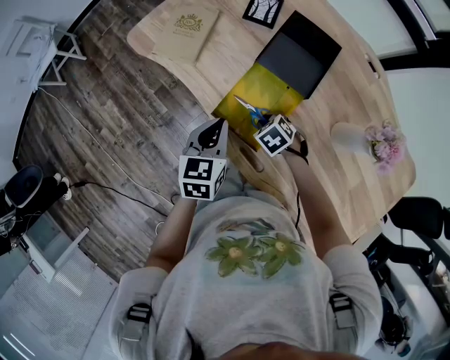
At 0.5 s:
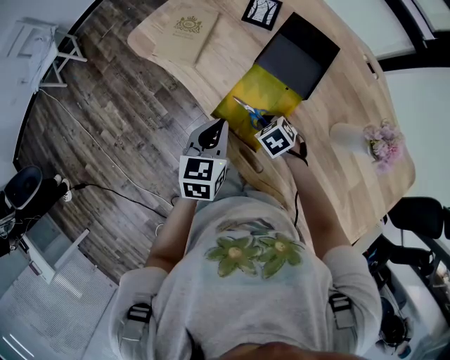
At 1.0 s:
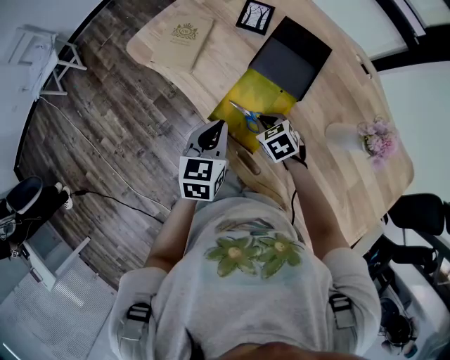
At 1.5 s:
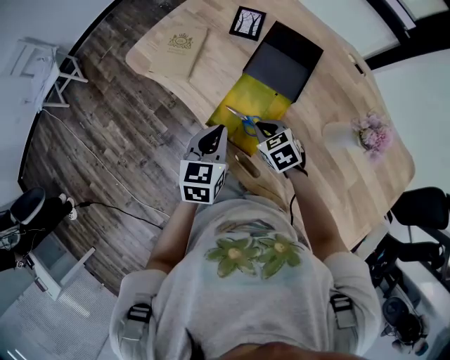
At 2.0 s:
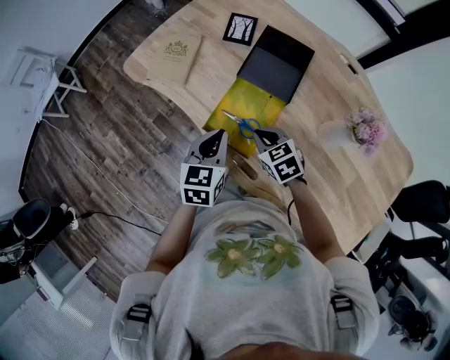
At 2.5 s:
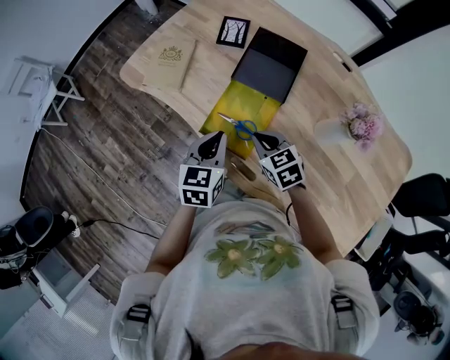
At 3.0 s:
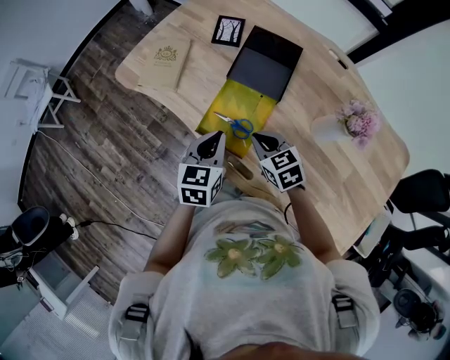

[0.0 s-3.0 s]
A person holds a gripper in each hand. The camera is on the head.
0.0 to 1.5 s: The right gripper goes approximately 10 cm upward, and turns by about 20 degrees.
1.5 to 3.0 s: The right gripper goes some 5 cm upward.

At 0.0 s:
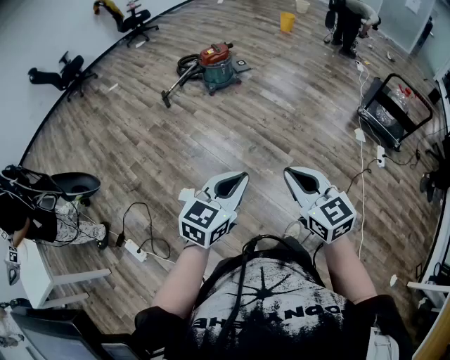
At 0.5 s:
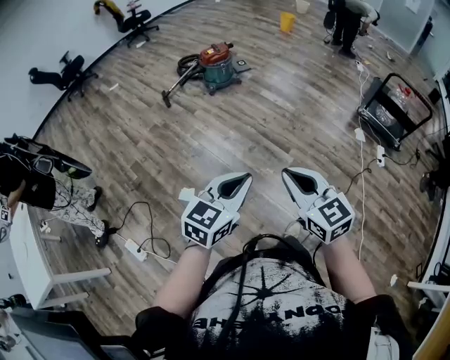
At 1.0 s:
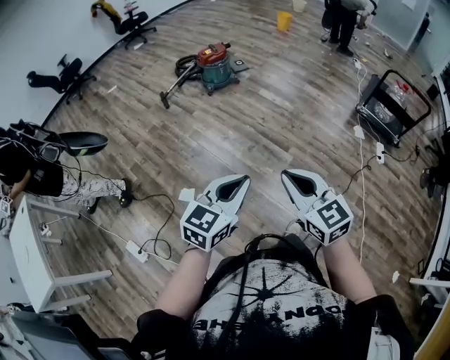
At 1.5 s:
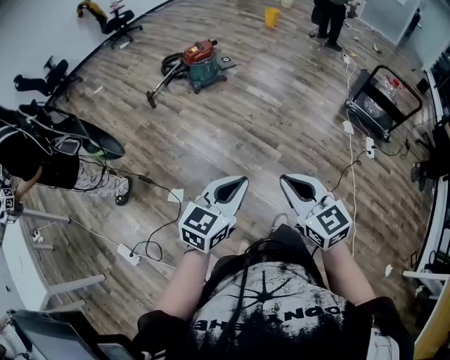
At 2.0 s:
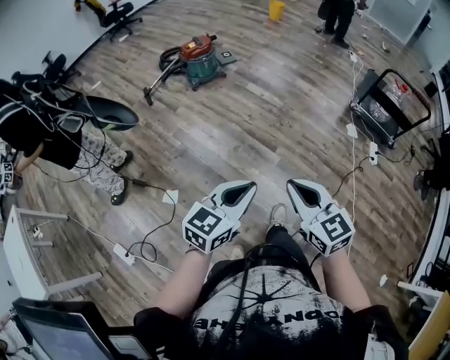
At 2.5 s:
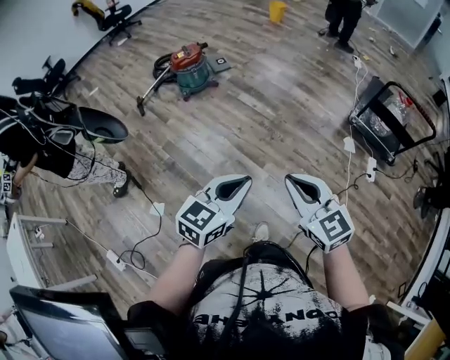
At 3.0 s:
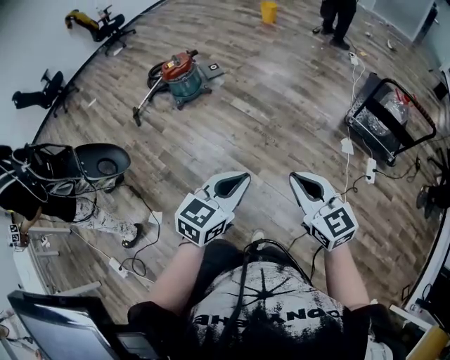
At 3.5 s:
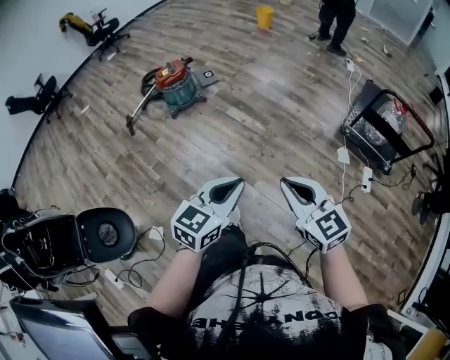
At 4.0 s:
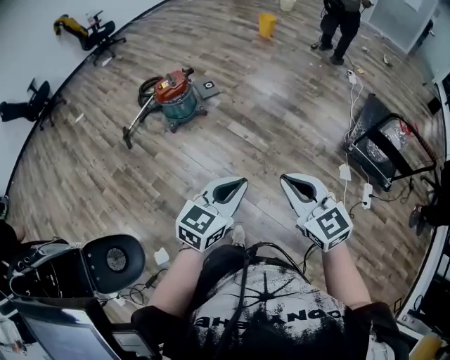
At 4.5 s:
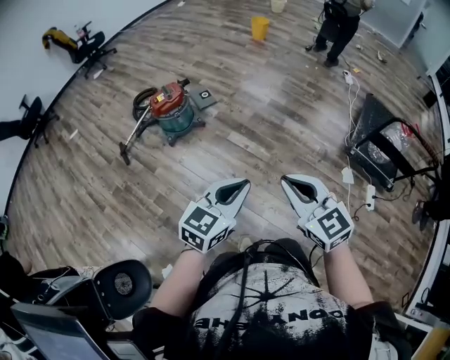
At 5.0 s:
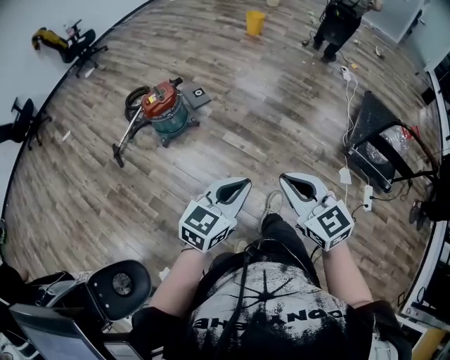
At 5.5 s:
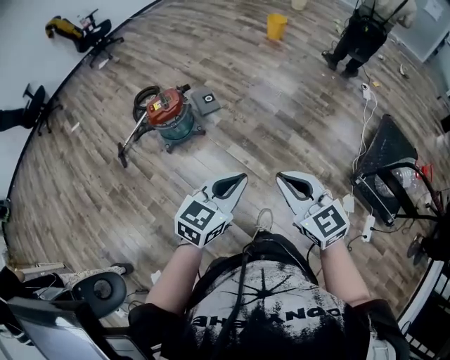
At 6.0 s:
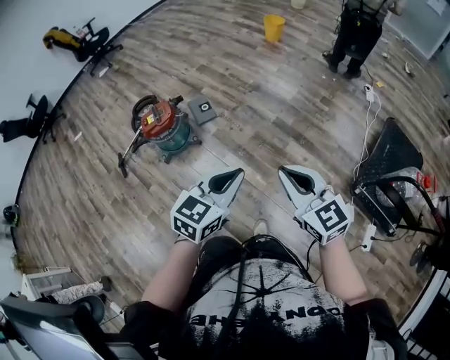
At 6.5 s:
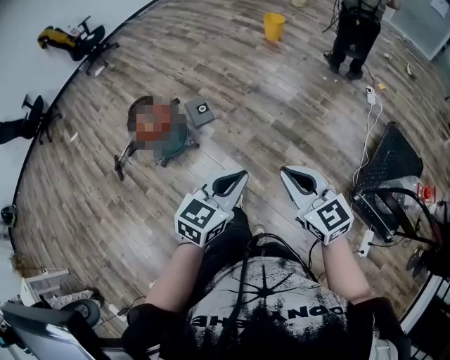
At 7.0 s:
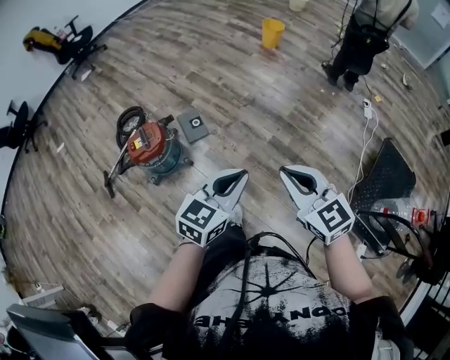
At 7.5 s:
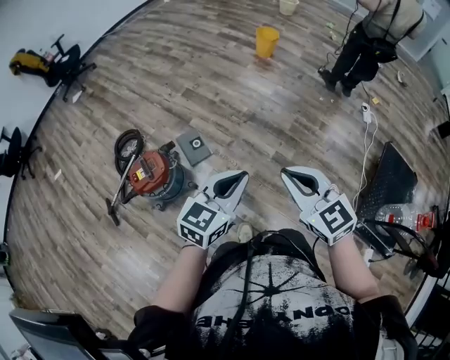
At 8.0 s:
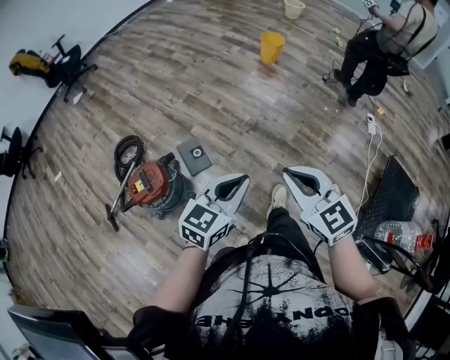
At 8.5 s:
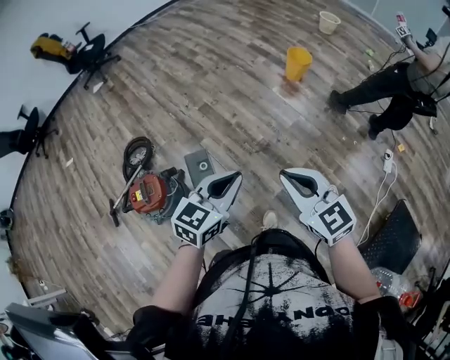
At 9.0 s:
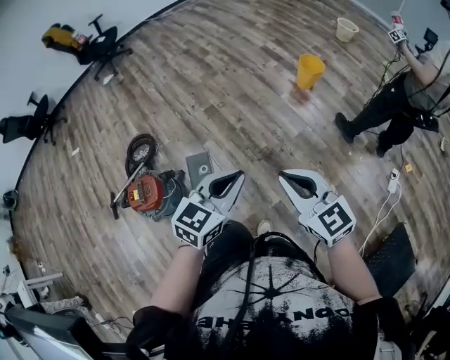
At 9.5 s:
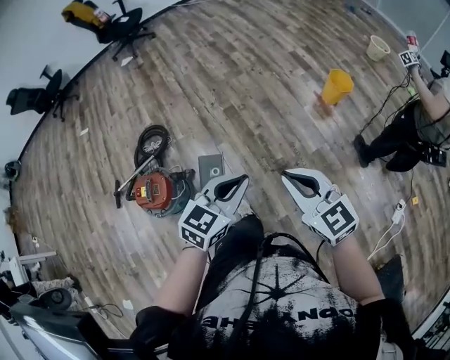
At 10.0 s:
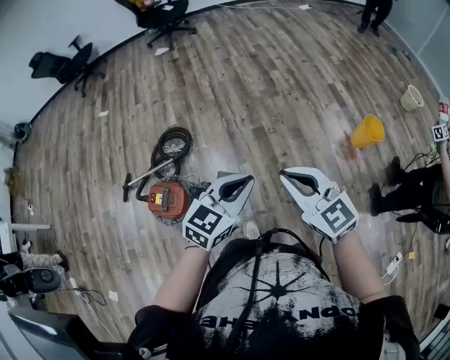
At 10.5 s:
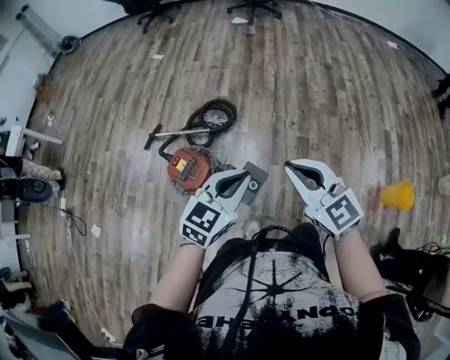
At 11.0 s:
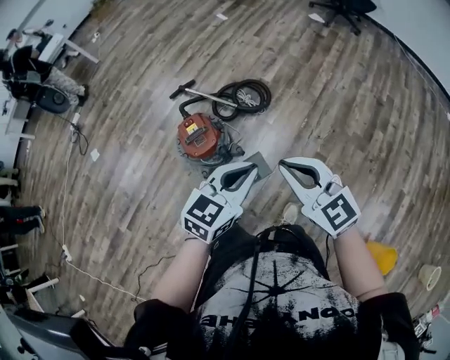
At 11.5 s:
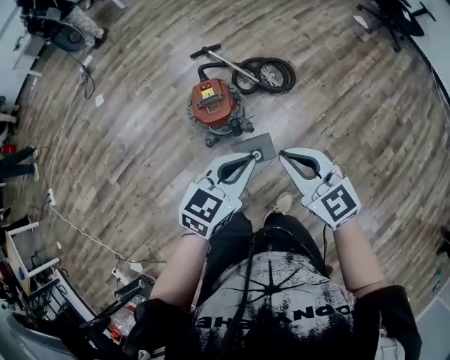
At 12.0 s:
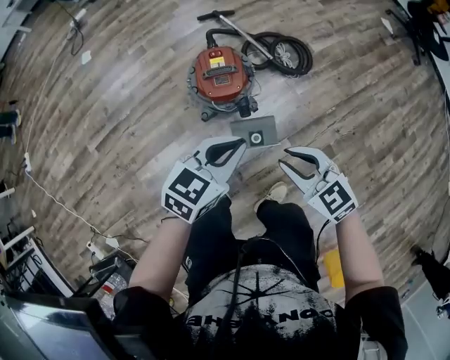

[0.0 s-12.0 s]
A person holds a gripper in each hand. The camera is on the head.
0.0 to 2.0 s: Both grippers move to the right and forward, about 10 cm.
2.0 to 4.0 s: The pair of grippers is taken forward, some 40 cm.
4.0 to 6.0 s: Both grippers are carried forward, roughly 40 cm.
6.0 to 8.0 s: The pair of grippers is taken forward, about 40 cm.
8.0 to 10.0 s: The two grippers travel together, approximately 40 cm. The right gripper swivels roughly 40 degrees; the left gripper swivels about 30 degrees.
10.0 to 12.0 s: The right gripper moves downward, some 20 cm, and rotates about 80 degrees. Meanwhile the left gripper shifts by some 25 cm, and changes its angle by about 70 degrees.

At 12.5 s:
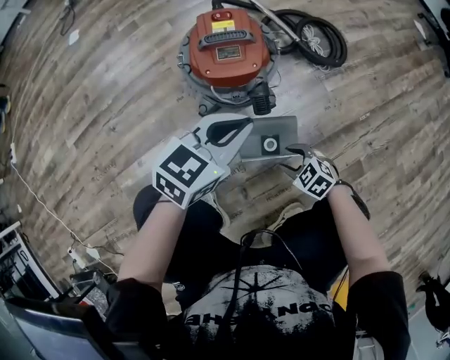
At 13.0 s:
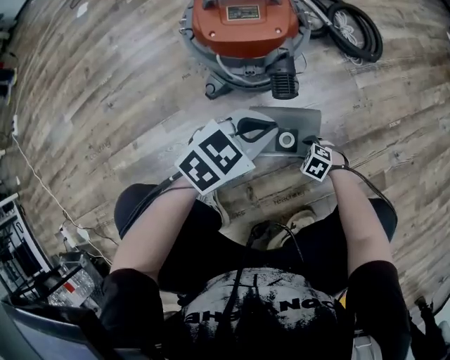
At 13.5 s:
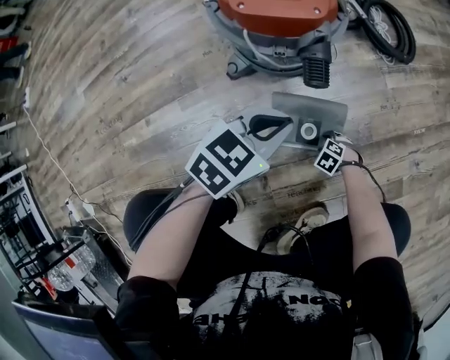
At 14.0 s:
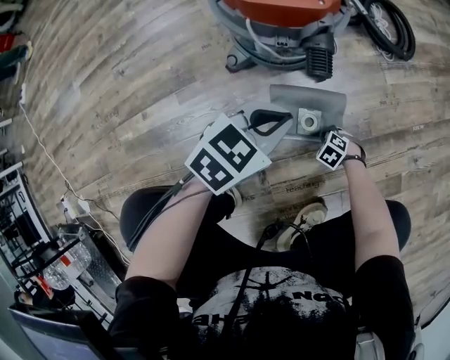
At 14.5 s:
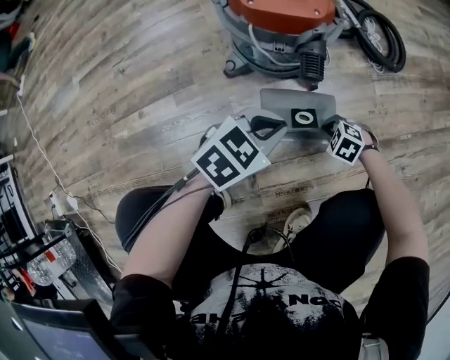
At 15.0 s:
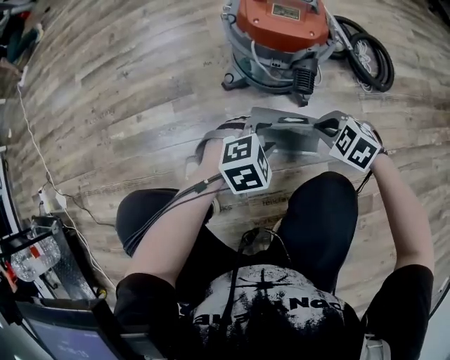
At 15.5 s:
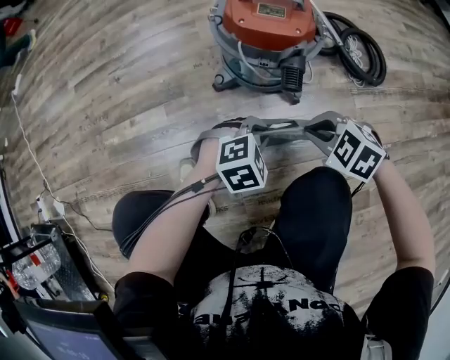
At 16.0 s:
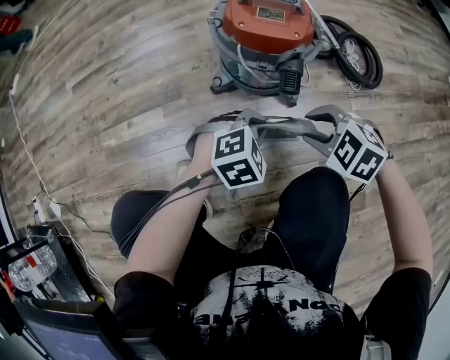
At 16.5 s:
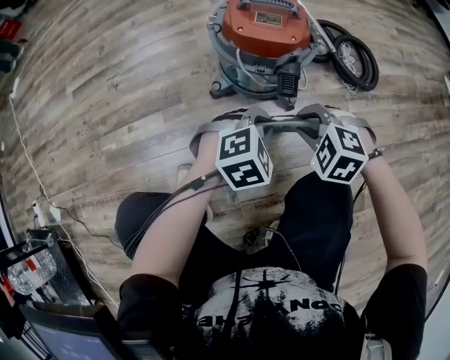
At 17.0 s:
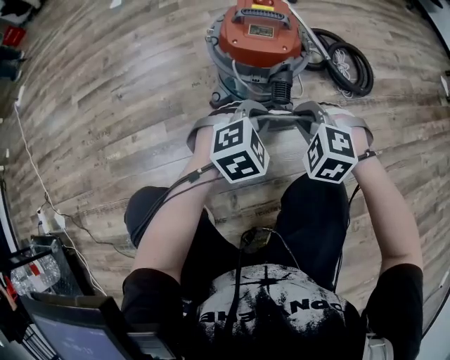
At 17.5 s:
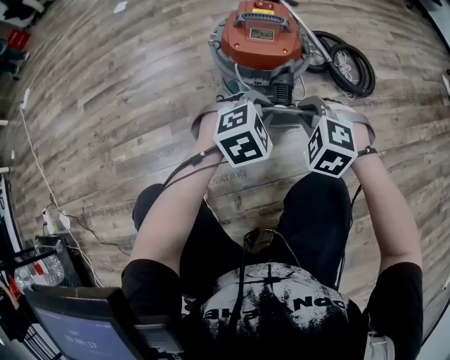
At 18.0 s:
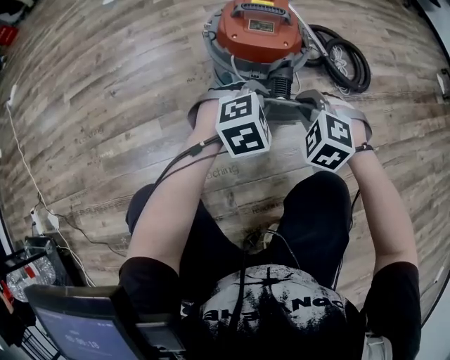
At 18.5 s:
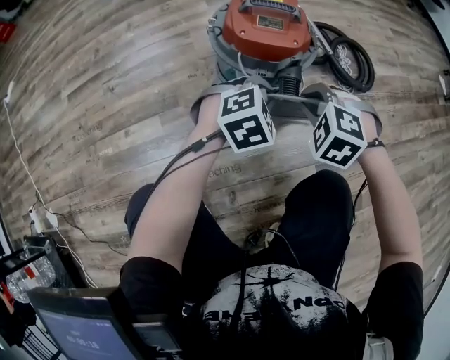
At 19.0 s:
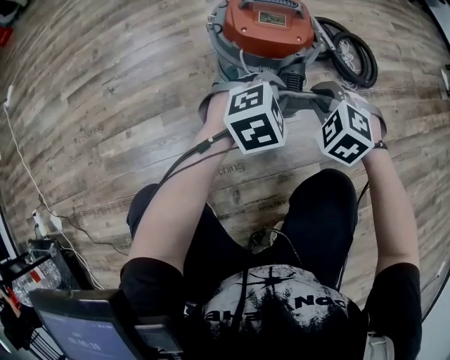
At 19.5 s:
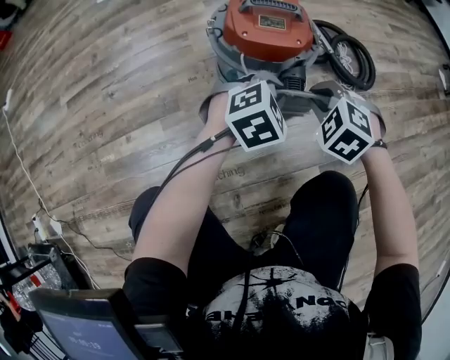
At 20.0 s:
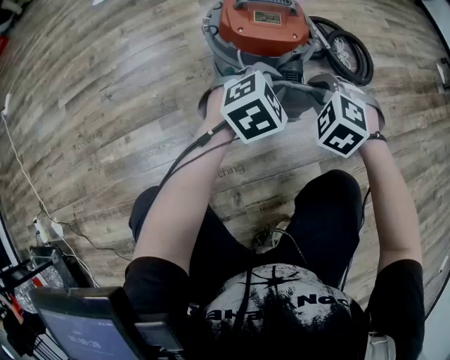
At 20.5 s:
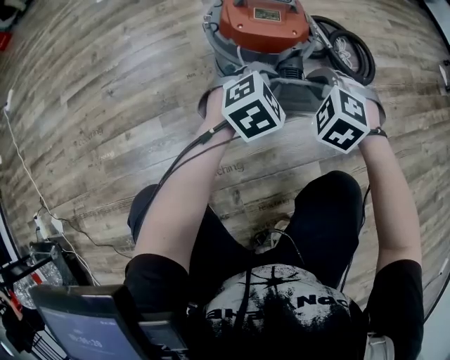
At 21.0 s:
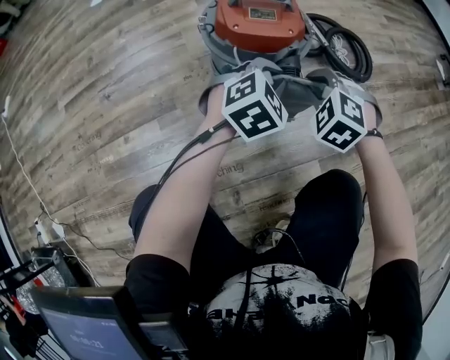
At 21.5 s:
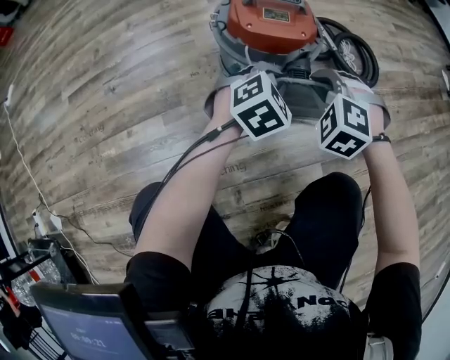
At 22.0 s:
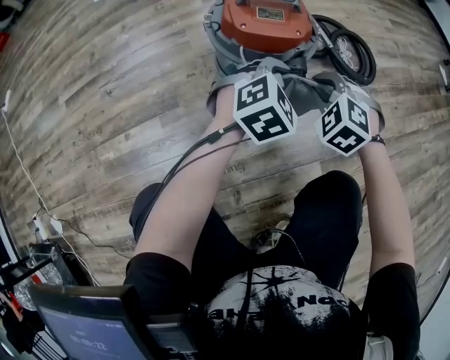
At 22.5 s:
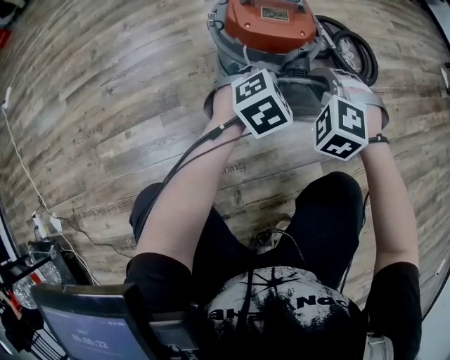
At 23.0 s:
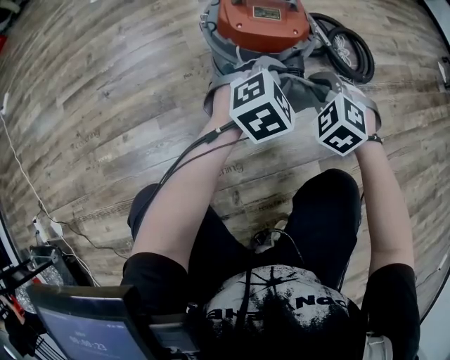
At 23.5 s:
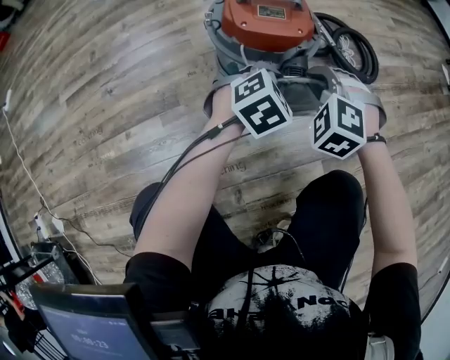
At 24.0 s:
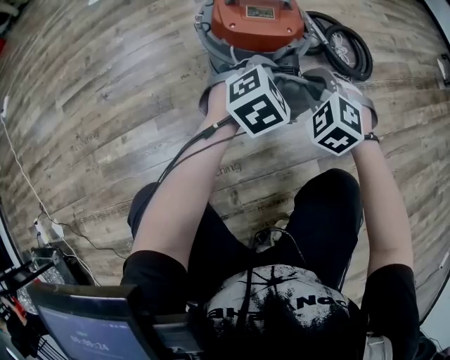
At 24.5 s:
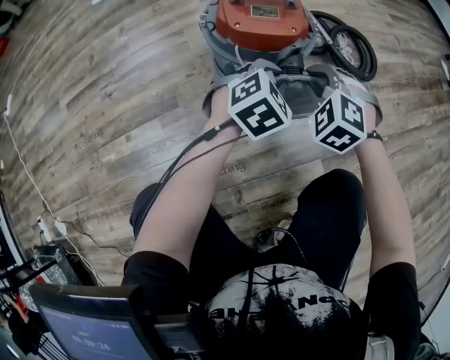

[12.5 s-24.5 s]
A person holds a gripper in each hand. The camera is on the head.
12.5 to 14.5 s: Both grippers move downward, roughly 20 cm. The right gripper swivels roughly 30 degrees, and closes its fingers.
14.5 to 16.5 s: The left gripper swivels about 30 degrees, and opens, then closes again. Meanwhile the right gripper goes some 25 cm upward, and swivels about 20 degrees.
16.5 to 18.5 s: Both grippers move forward, some 5 cm.
18.5 to 20.5 s: There are only small adjustments of the grippers.
20.5 to 24.5 s: There are only small adjustments of the grippers.
